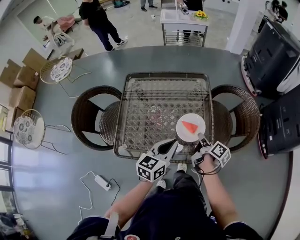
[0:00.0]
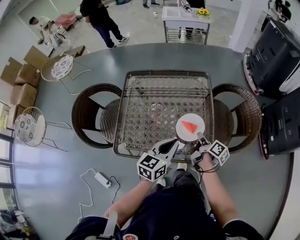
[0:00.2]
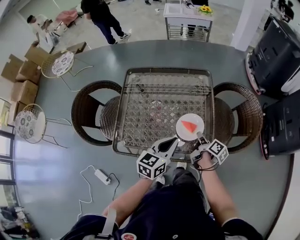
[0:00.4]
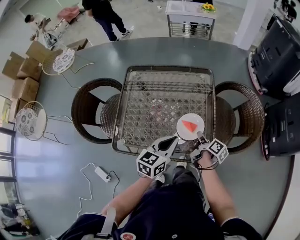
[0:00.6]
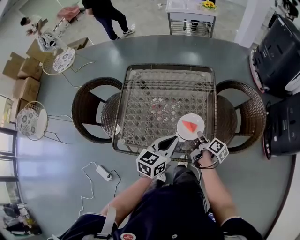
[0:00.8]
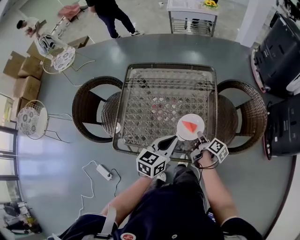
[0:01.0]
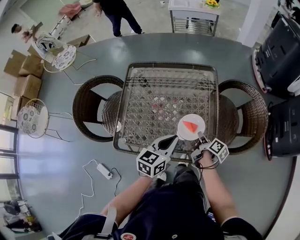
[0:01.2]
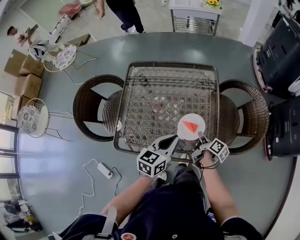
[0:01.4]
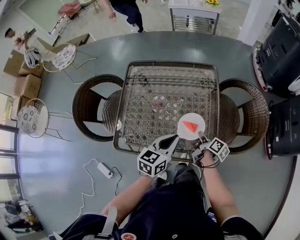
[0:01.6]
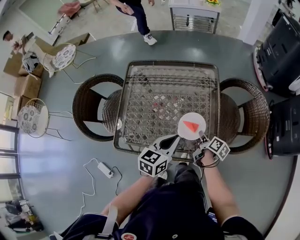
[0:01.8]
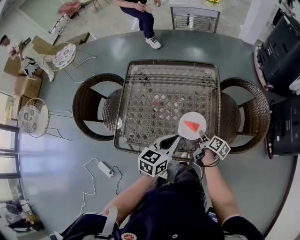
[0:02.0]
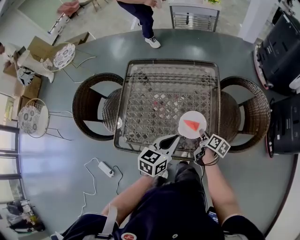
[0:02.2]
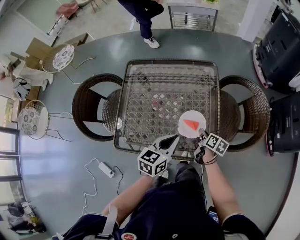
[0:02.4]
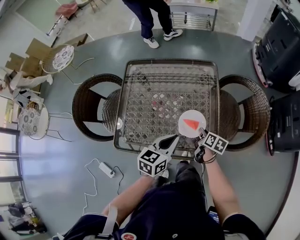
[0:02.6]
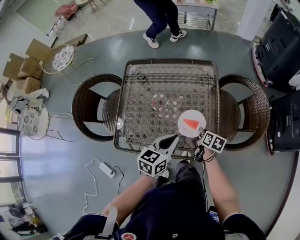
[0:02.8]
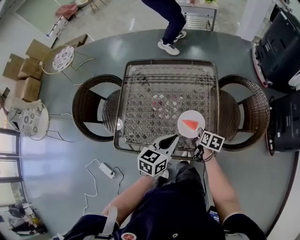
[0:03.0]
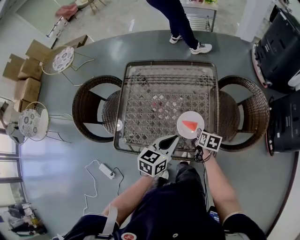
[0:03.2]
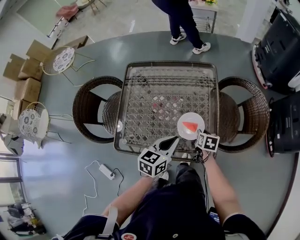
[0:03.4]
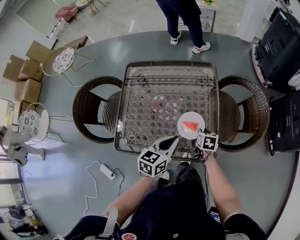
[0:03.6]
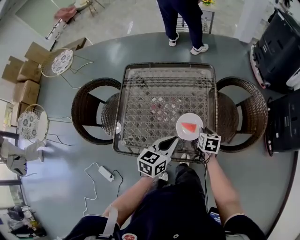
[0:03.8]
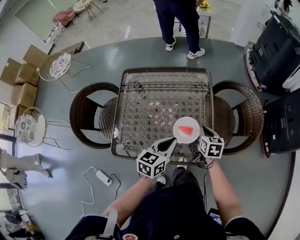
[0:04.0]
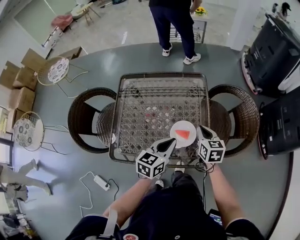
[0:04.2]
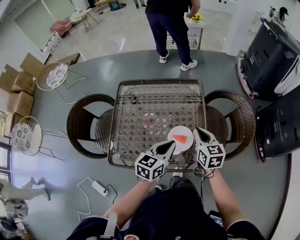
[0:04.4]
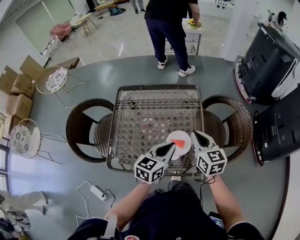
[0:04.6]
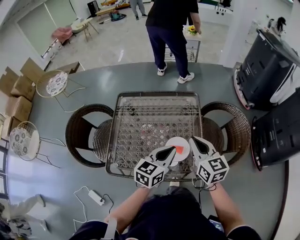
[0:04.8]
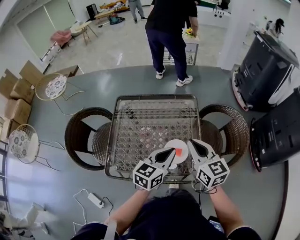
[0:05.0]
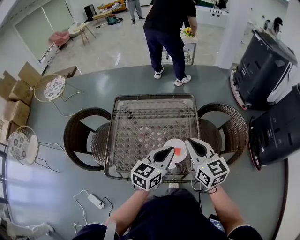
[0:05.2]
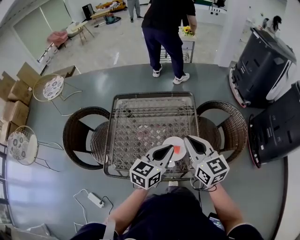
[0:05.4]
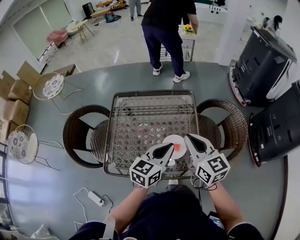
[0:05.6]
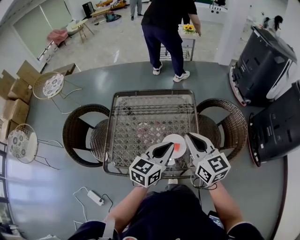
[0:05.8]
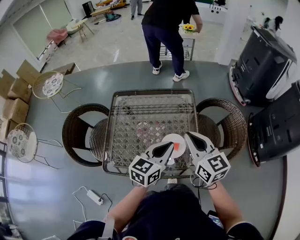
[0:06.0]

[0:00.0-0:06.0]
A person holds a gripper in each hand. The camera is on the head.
0:00.0 to 0:01.6: The right gripper travels downward by roughly 10 cm.
0:01.6 to 0:03.0: The right gripper swivels about 40 degrees.
0:03.0 to 0:04.4: The left gripper moves roughly 5 cm. Meanwhile the right gripper travels upward by some 20 cm, and changes its angle by roughly 40 degrees.
0:04.4 to 0:06.0: The left gripper moves upward, roughly 5 cm. The right gripper goes some 15 cm upward, and changes its angle by about 20 degrees.

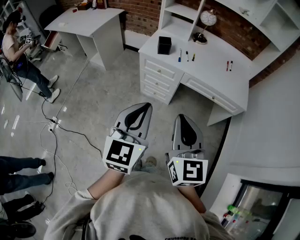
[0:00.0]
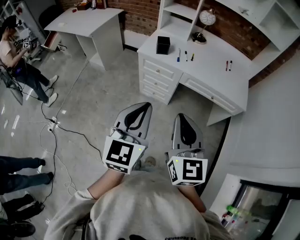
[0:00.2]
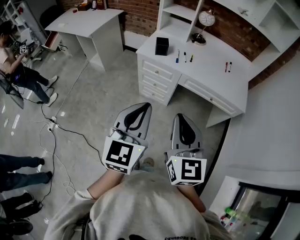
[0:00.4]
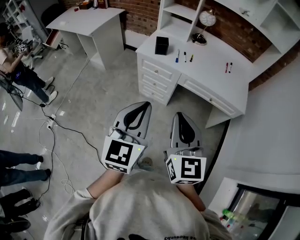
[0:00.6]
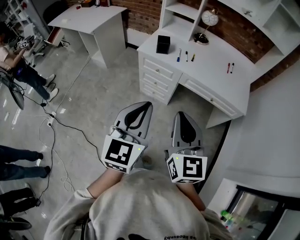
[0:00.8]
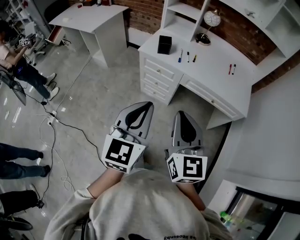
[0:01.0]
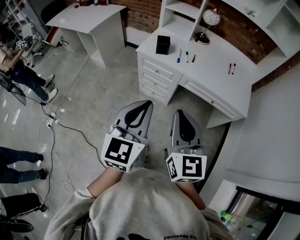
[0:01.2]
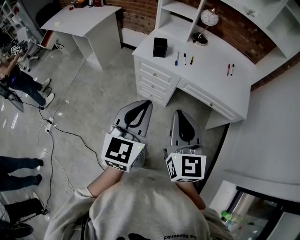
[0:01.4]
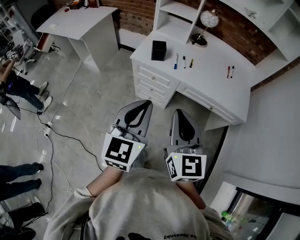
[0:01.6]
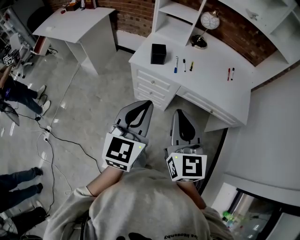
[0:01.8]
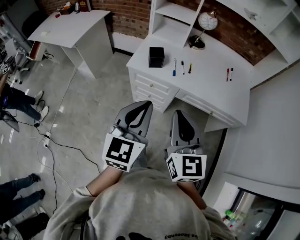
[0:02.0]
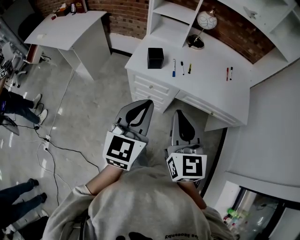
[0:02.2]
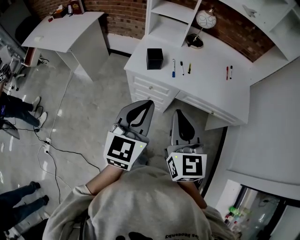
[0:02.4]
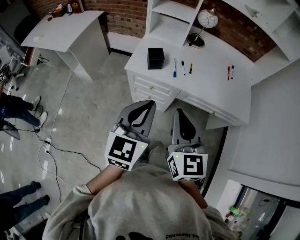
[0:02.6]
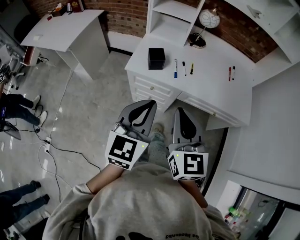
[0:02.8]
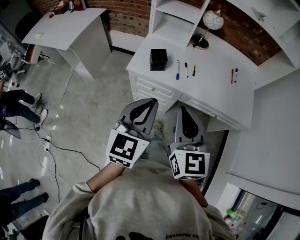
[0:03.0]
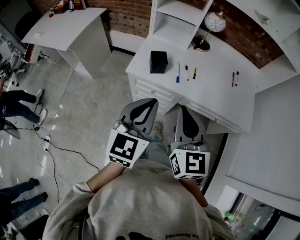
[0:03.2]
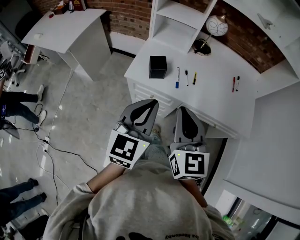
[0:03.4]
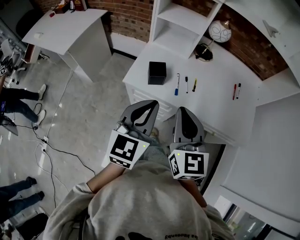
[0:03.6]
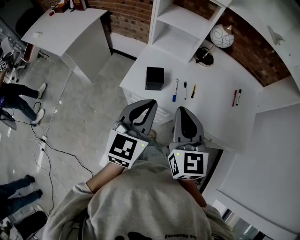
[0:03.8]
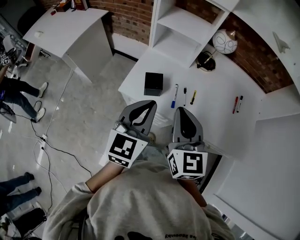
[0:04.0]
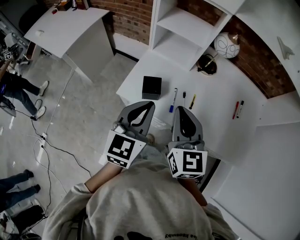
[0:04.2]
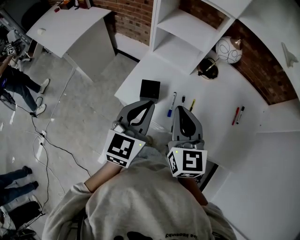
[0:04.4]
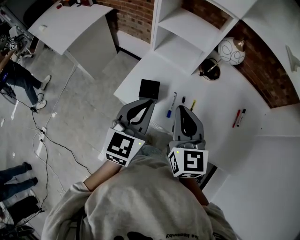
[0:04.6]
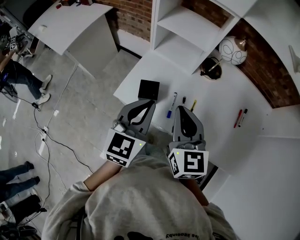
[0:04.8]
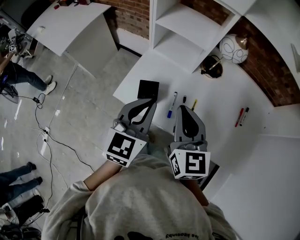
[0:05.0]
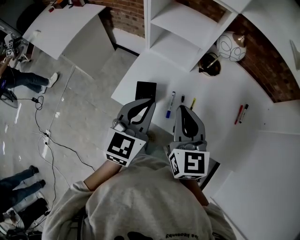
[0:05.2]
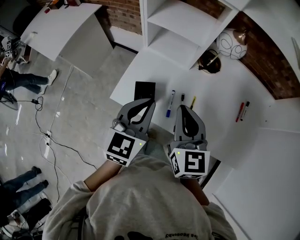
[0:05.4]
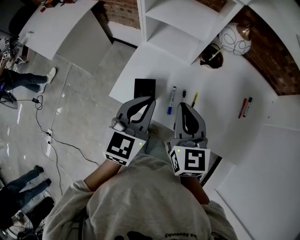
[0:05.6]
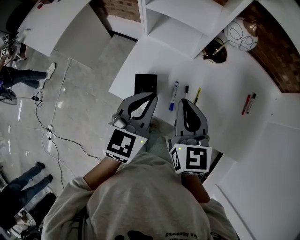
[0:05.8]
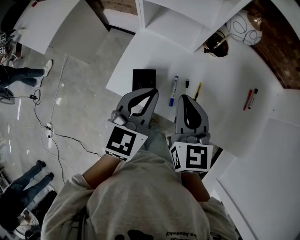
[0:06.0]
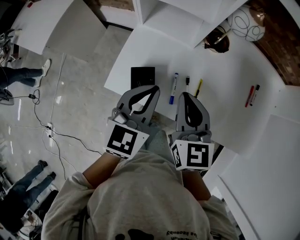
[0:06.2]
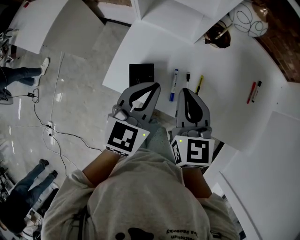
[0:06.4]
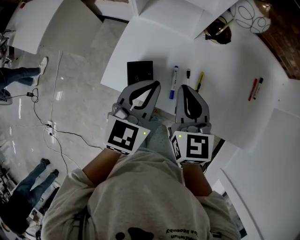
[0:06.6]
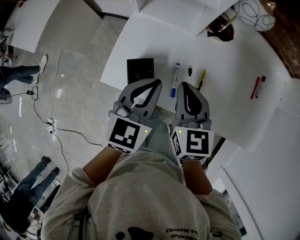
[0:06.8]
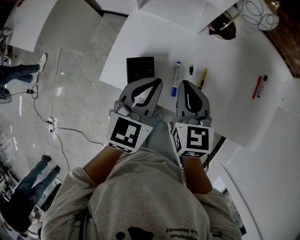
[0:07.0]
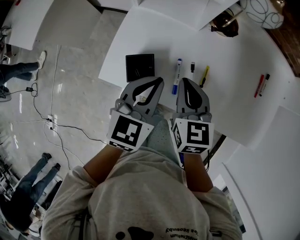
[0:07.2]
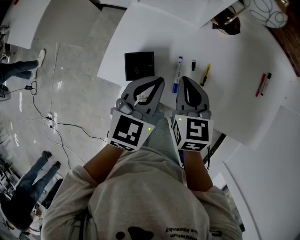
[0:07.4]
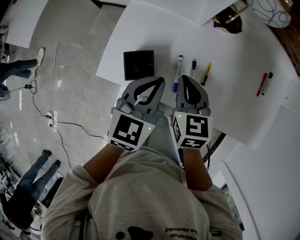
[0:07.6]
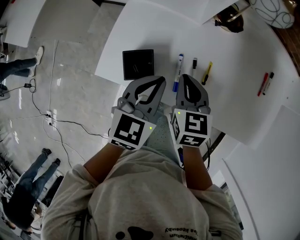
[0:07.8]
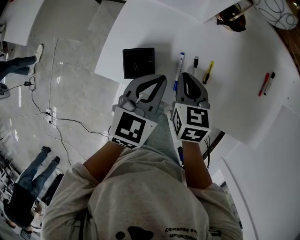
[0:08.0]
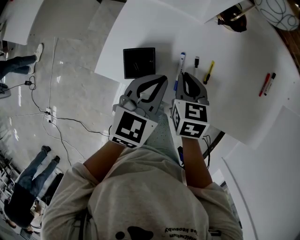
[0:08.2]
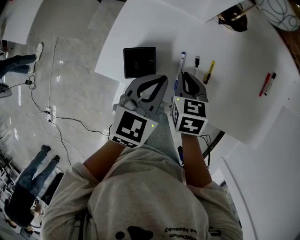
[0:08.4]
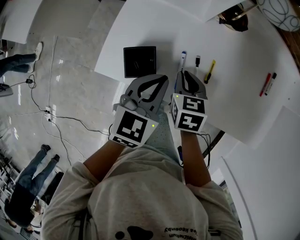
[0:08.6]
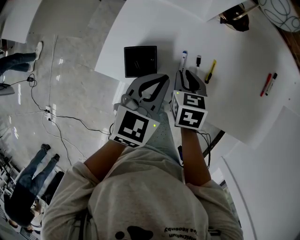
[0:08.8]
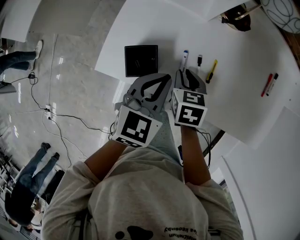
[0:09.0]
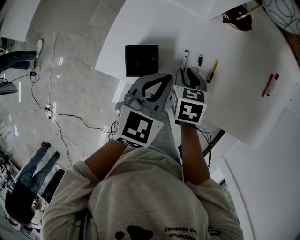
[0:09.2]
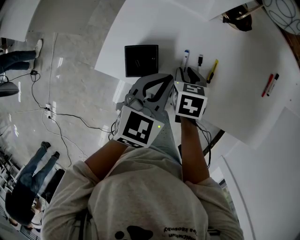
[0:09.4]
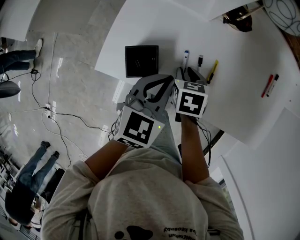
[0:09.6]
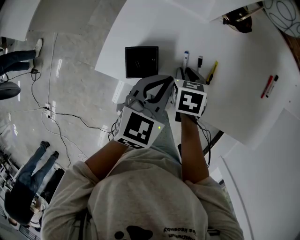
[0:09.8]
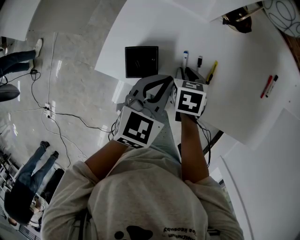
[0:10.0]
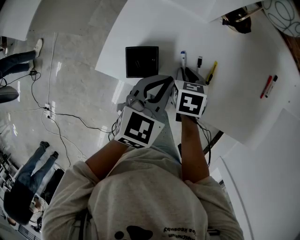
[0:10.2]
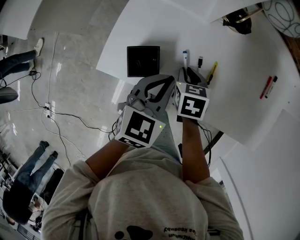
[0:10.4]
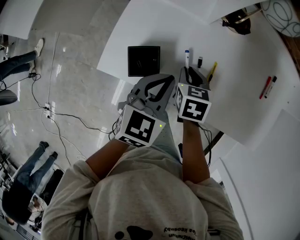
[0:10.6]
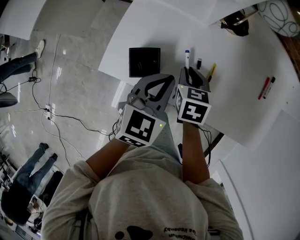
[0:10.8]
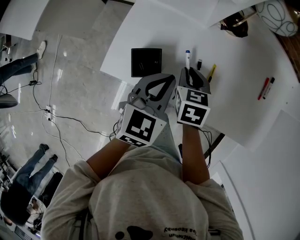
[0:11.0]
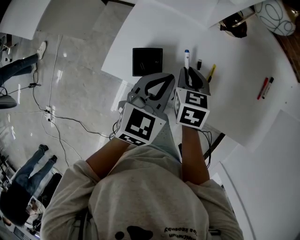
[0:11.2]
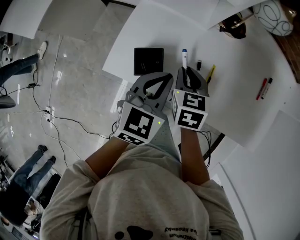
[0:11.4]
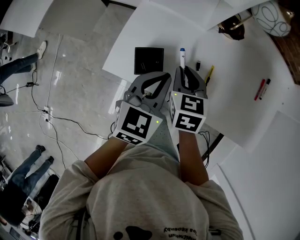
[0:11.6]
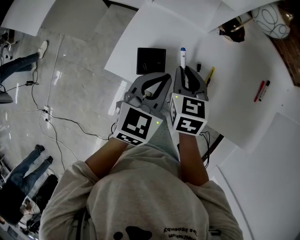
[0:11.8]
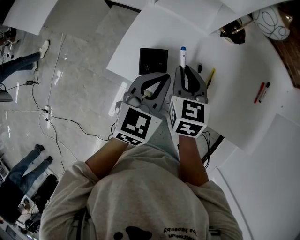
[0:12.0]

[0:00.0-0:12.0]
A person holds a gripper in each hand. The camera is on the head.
0:00.0 to 0:01.6: The two grippers go roughly 15 cm forward.
0:01.6 to 0:03.0: The two grippers go about 15 cm forward.
0:03.0 to 0:04.4: Both grippers travel together forward, roughly 25 cm.
0:04.4 to 0:06.0: The two grippers go about 10 cm forward and downward.
0:06.0 to 0:07.6: The grippers both shift downward by approximately 15 cm.
0:07.6 to 0:09.0: The right gripper is displaced downward by about 10 cm.
0:09.0 to 0:10.4: The grippers make only small movements.
0:10.4 to 0:12.0: The right gripper goes roughly 15 cm upward, and turns by some 30 degrees; the left gripper travels upward by roughly 5 cm.

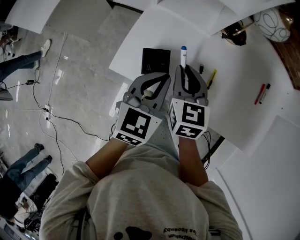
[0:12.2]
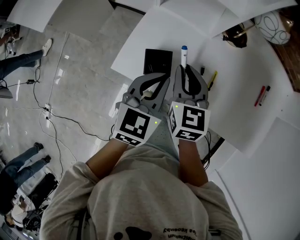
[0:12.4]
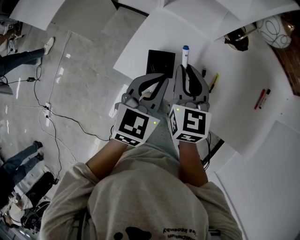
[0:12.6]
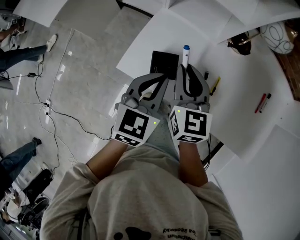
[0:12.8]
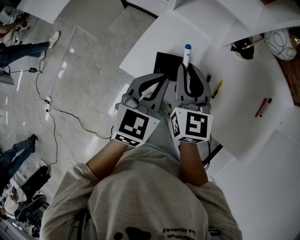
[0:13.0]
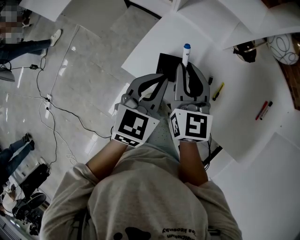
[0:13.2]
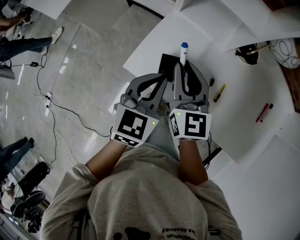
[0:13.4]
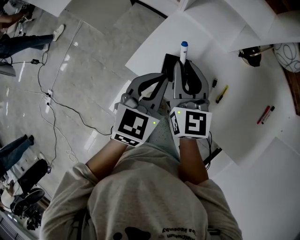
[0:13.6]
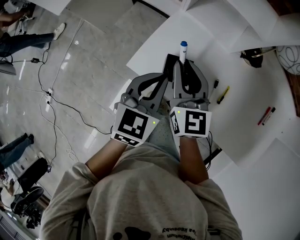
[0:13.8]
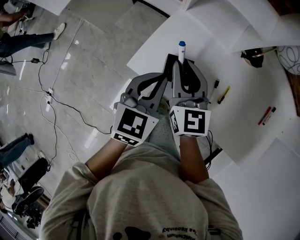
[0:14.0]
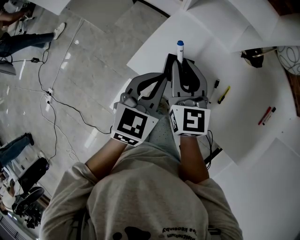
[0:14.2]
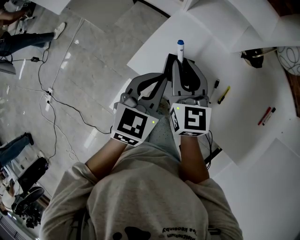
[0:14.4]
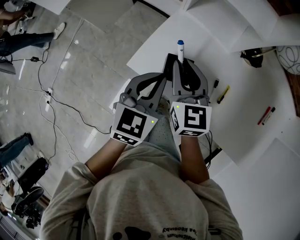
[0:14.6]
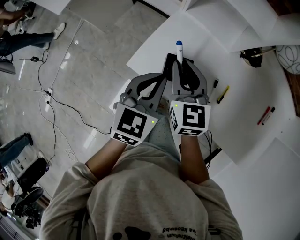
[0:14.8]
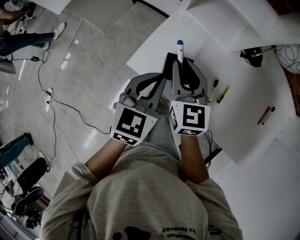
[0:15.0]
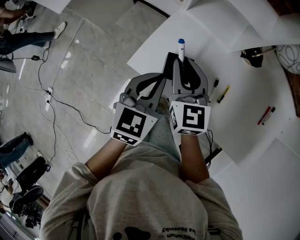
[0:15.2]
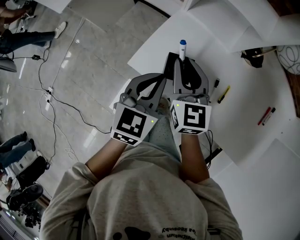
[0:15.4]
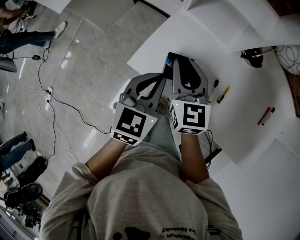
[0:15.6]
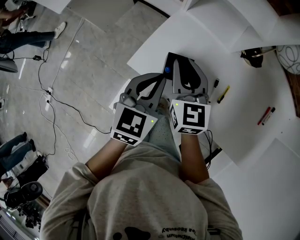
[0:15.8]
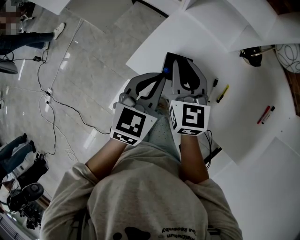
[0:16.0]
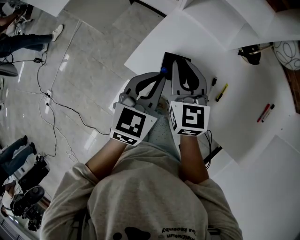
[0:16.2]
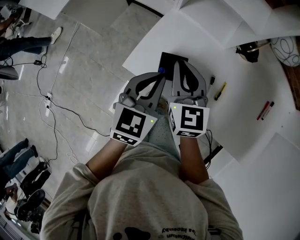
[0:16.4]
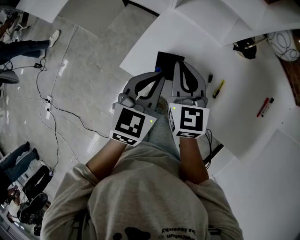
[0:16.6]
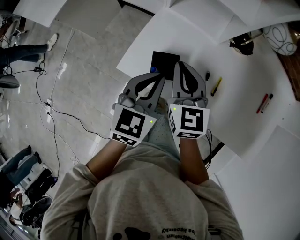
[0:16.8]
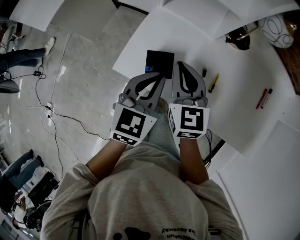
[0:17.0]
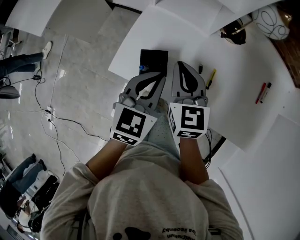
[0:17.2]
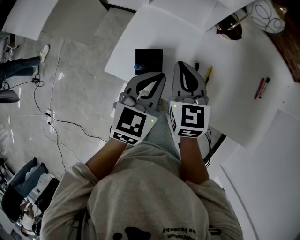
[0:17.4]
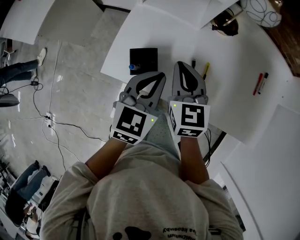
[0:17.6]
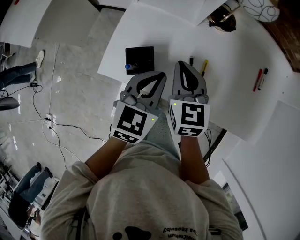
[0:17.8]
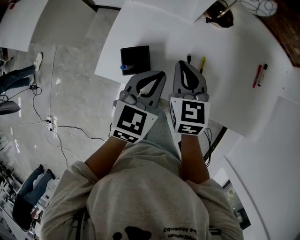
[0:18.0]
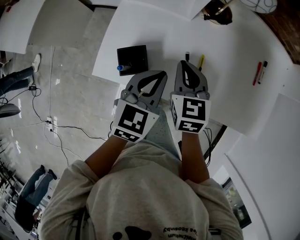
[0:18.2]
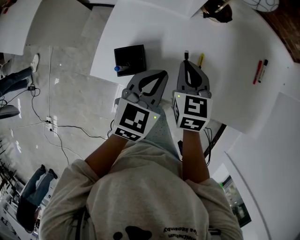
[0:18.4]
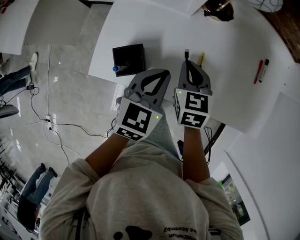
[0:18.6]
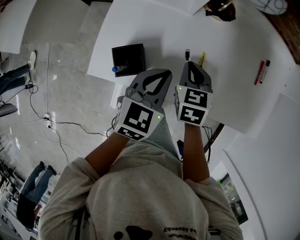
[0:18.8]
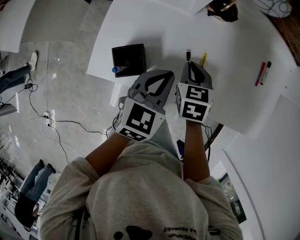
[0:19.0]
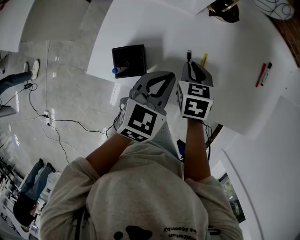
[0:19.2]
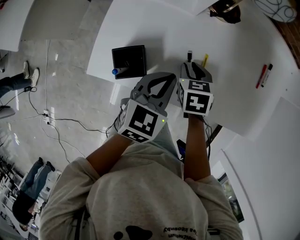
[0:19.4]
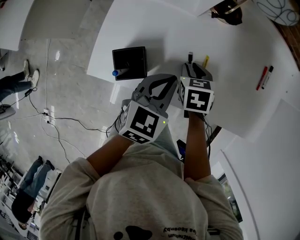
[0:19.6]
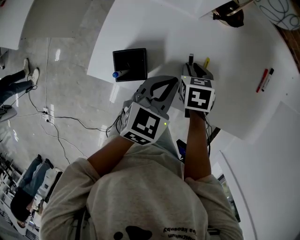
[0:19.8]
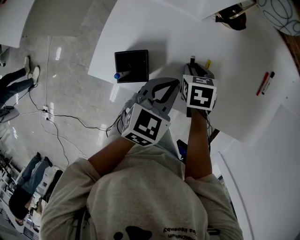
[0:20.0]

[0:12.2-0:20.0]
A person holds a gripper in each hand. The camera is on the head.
0:12.2 to 0:13.8: Both grippers travel together to the left, roughly 10 cm. The right gripper rotates roughly 20 degrees.
0:13.8 to 0:16.8: The grippers make only small movements.
0:16.8 to 0:18.4: The right gripper shifts approximately 15 cm to the right and downward, and rotates about 20 degrees. Meanwhile the left gripper is displaced to the right by about 10 cm.
0:18.4 to 0:20.0: The right gripper moves downward, roughly 10 cm, changes its angle by some 30 degrees, and opens its fingers.
